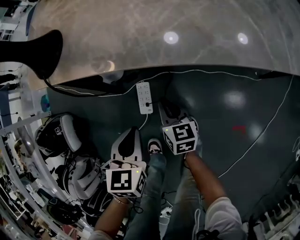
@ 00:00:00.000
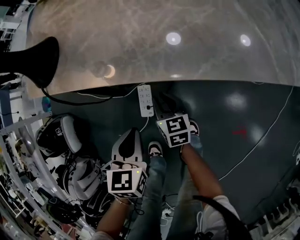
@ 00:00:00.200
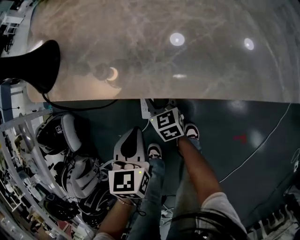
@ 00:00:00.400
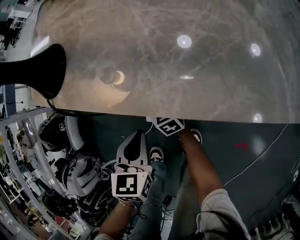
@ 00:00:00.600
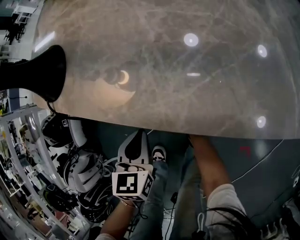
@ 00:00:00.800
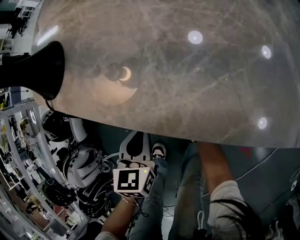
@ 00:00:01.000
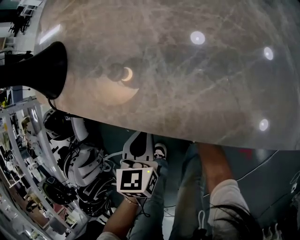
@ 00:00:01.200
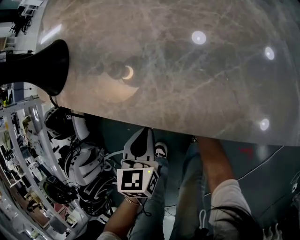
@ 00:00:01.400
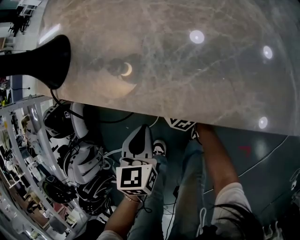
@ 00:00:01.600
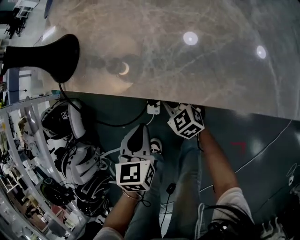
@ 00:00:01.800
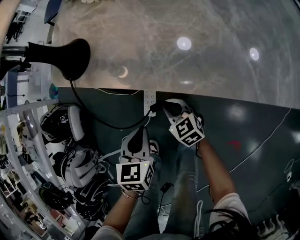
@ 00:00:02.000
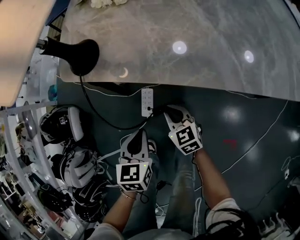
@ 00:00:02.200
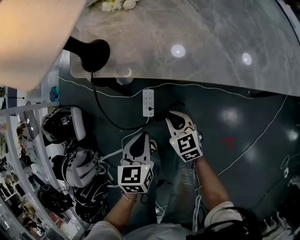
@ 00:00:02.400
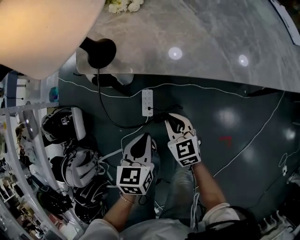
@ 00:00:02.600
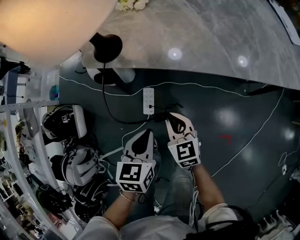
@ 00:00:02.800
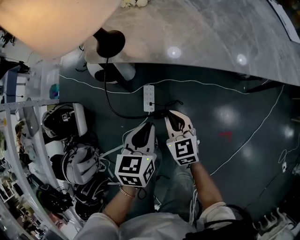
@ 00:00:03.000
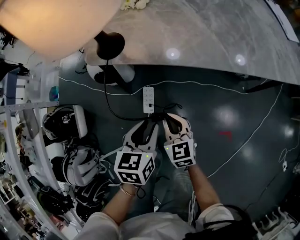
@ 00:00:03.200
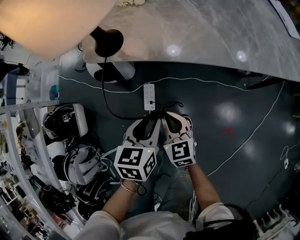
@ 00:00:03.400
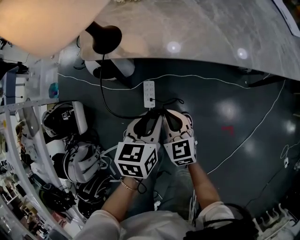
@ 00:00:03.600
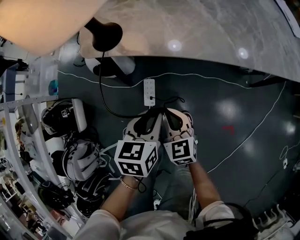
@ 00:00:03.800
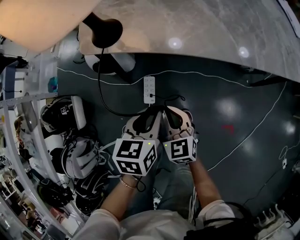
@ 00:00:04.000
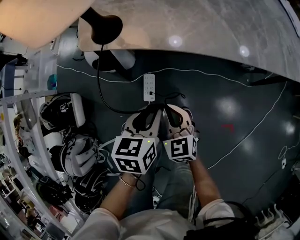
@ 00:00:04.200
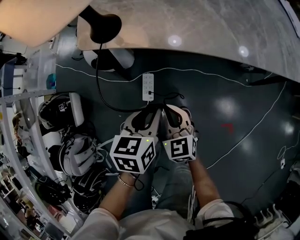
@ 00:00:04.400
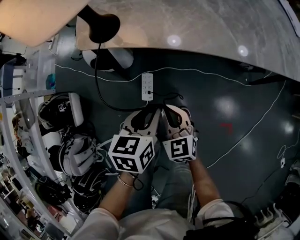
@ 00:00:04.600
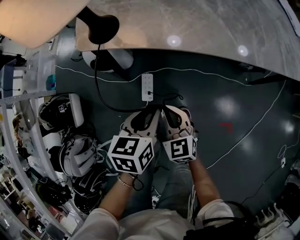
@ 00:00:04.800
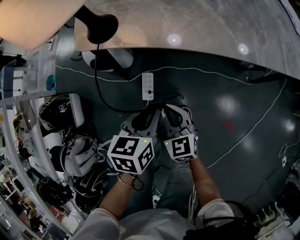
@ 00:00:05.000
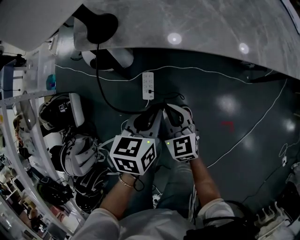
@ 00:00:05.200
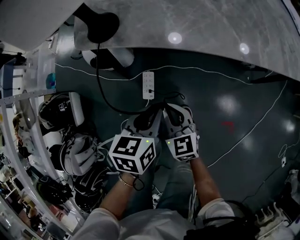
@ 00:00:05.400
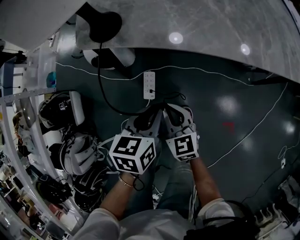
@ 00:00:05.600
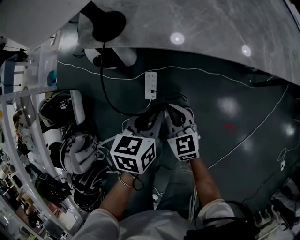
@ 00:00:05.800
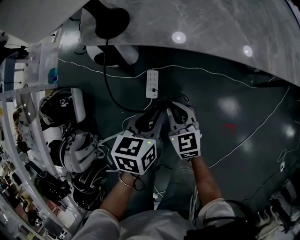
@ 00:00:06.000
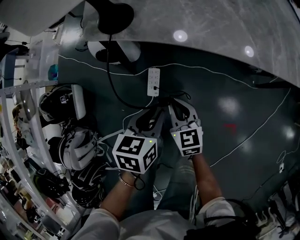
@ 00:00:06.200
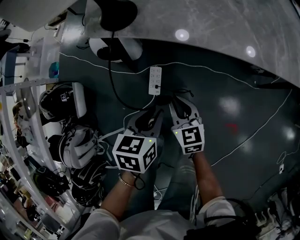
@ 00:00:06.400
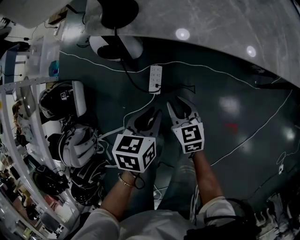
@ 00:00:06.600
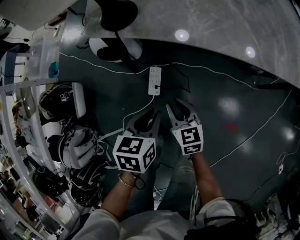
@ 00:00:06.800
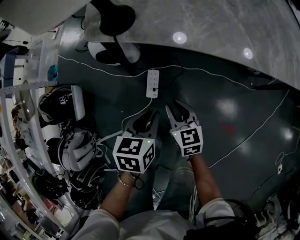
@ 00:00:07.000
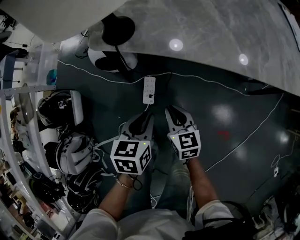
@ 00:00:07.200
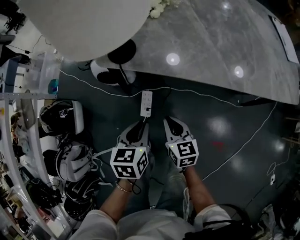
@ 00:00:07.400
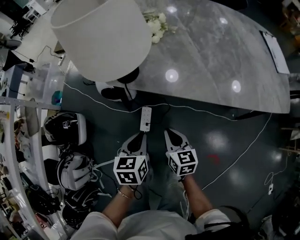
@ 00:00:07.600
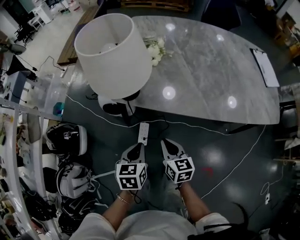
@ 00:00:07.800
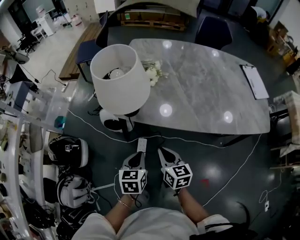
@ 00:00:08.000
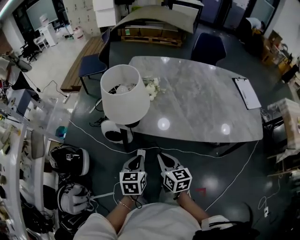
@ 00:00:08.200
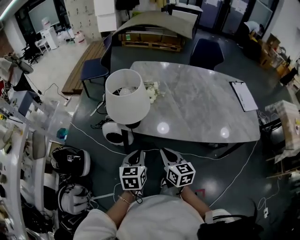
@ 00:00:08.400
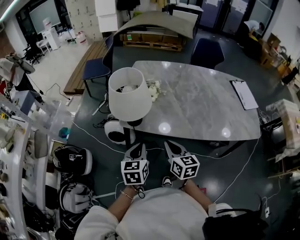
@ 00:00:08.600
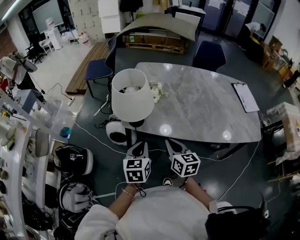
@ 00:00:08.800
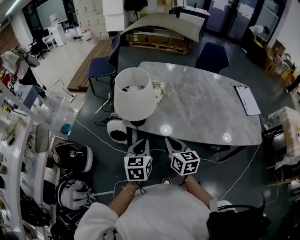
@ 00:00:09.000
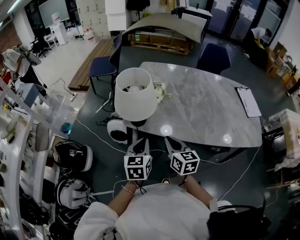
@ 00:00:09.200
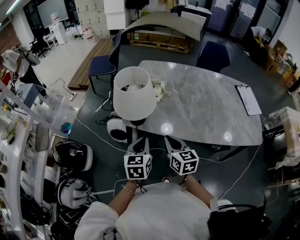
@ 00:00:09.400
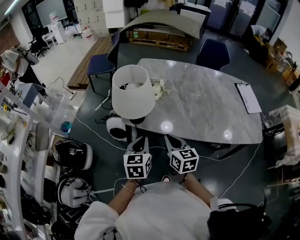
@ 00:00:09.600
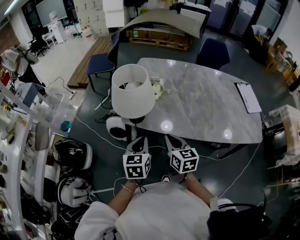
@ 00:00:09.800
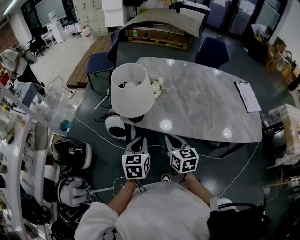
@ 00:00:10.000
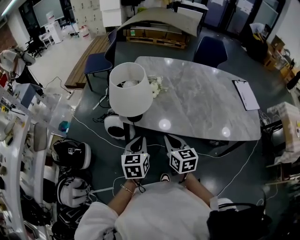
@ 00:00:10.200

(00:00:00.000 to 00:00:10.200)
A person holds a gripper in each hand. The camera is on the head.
00:00:00.000 - 00:00:01.400: The right gripper travels forward by some 10 cm, rolls counterclockwise, seen from behind, by some 40 degrees, and opens, then closes again. Meanwhile the left gripper shifts by roughly 5 cm.
00:00:01.400 - 00:00:03.000: The grippers both shift upward and backward by approximately 25 cm. The right gripper swivels approximately 30 degrees.
00:00:03.000 - 00:00:04.400: The left gripper opens its fingers.
00:00:04.400 - 00:00:05.800: The grippers stay close to where they were, moving slightly.
00:00:05.800 - 00:00:07.200: The grippers move only a little.
00:00:07.200 - 00:00:08.800: The grippers both shift upward by roughly 30 cm. The left gripper rotates roughly 20 degrees.
00:00:08.800 - 00:00:10.200: The grippers move only a little.

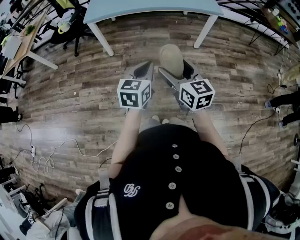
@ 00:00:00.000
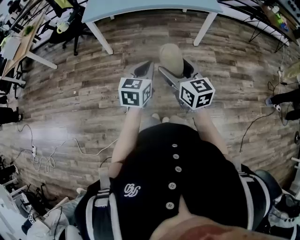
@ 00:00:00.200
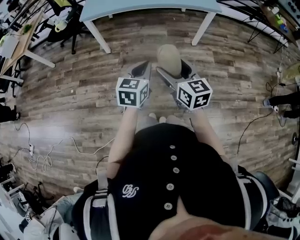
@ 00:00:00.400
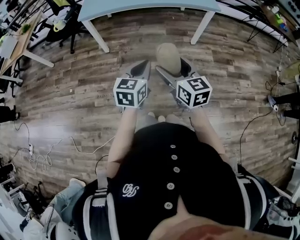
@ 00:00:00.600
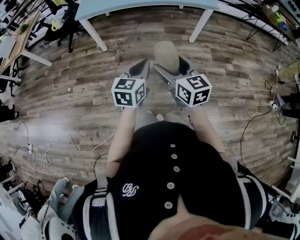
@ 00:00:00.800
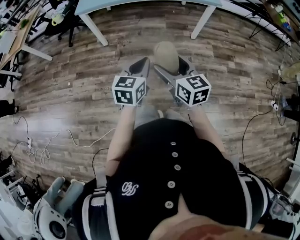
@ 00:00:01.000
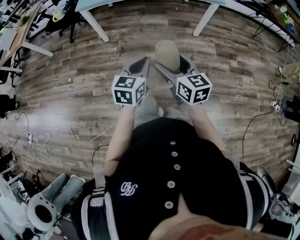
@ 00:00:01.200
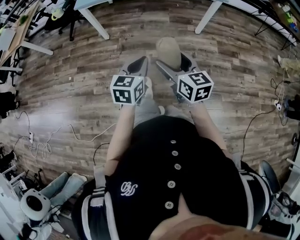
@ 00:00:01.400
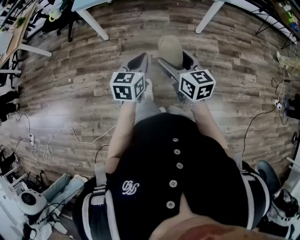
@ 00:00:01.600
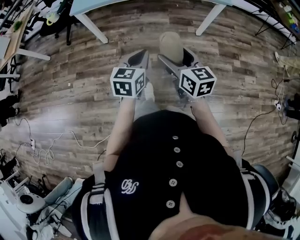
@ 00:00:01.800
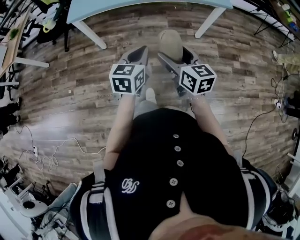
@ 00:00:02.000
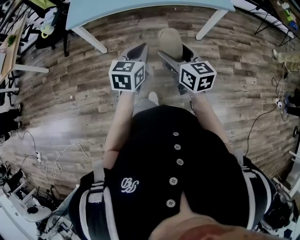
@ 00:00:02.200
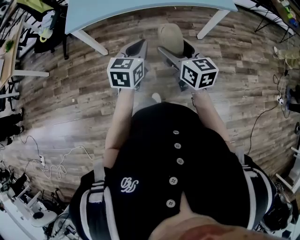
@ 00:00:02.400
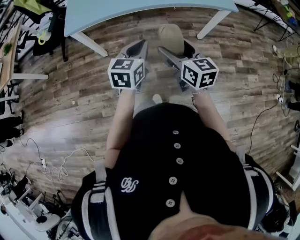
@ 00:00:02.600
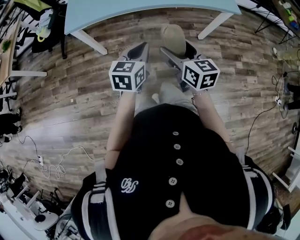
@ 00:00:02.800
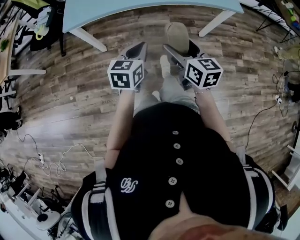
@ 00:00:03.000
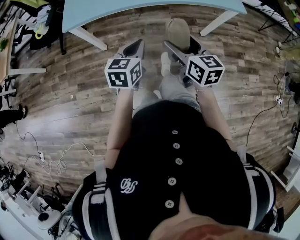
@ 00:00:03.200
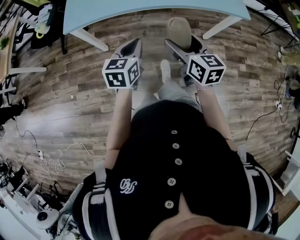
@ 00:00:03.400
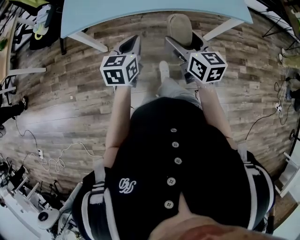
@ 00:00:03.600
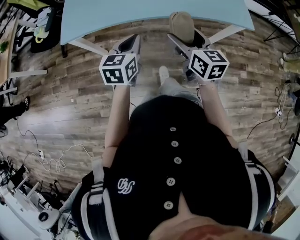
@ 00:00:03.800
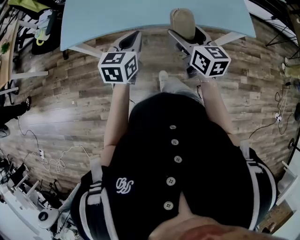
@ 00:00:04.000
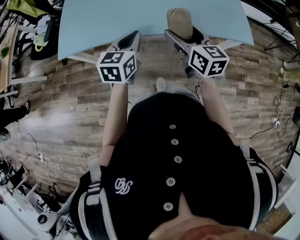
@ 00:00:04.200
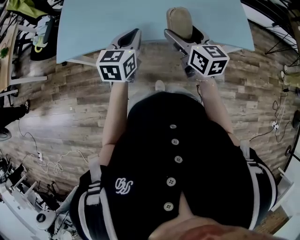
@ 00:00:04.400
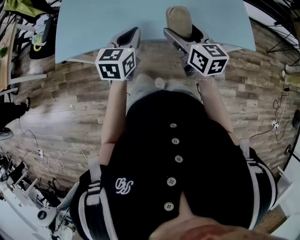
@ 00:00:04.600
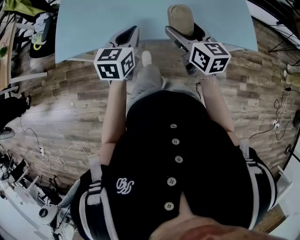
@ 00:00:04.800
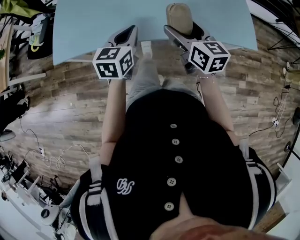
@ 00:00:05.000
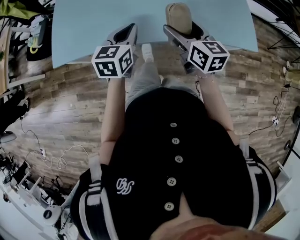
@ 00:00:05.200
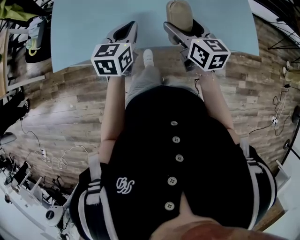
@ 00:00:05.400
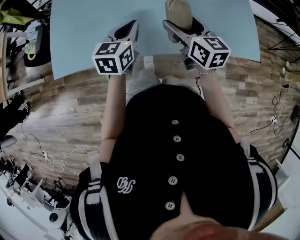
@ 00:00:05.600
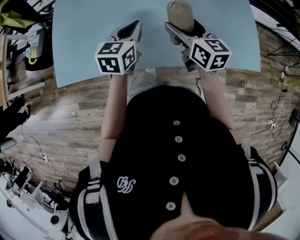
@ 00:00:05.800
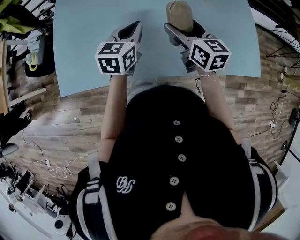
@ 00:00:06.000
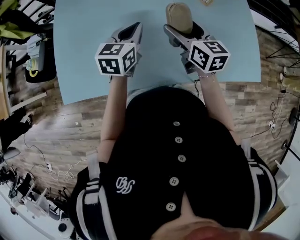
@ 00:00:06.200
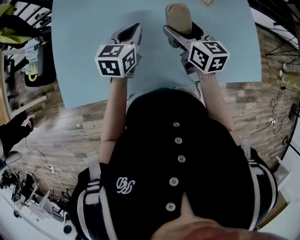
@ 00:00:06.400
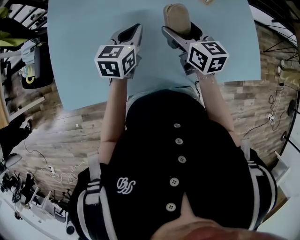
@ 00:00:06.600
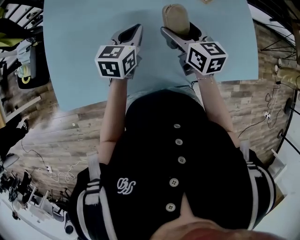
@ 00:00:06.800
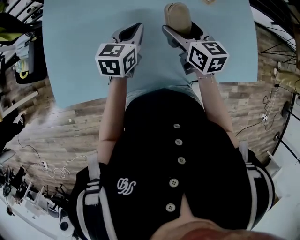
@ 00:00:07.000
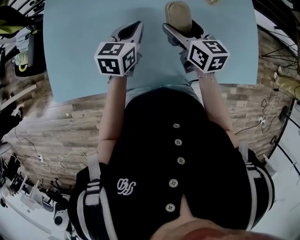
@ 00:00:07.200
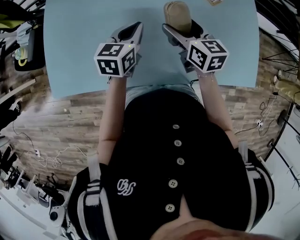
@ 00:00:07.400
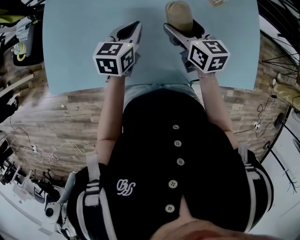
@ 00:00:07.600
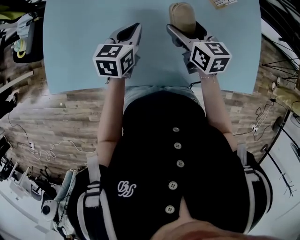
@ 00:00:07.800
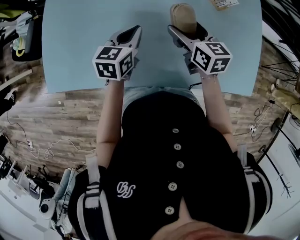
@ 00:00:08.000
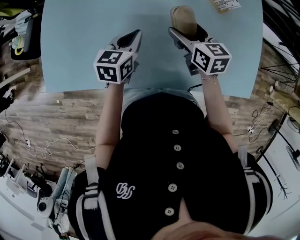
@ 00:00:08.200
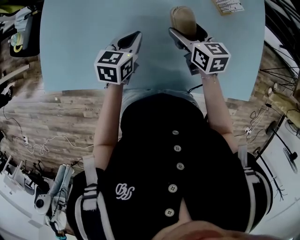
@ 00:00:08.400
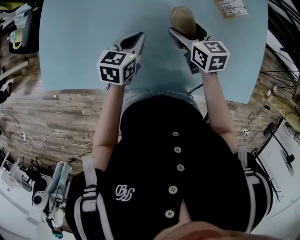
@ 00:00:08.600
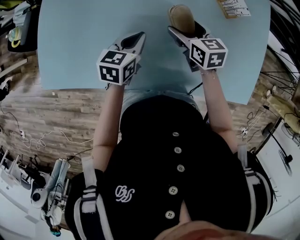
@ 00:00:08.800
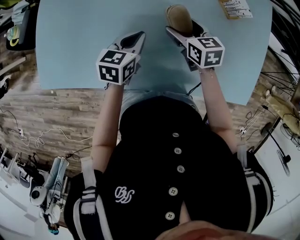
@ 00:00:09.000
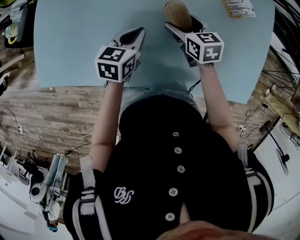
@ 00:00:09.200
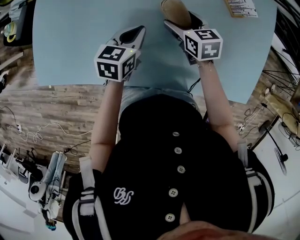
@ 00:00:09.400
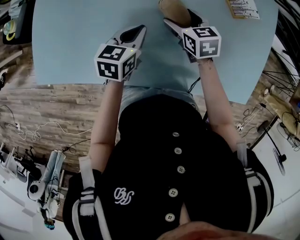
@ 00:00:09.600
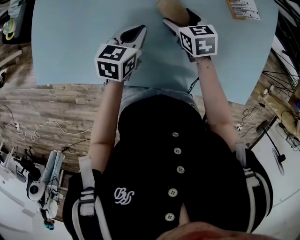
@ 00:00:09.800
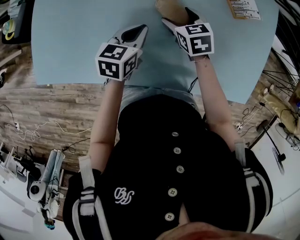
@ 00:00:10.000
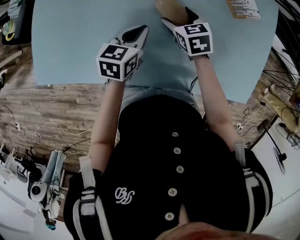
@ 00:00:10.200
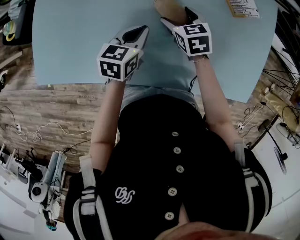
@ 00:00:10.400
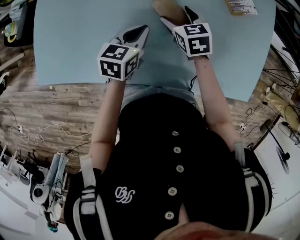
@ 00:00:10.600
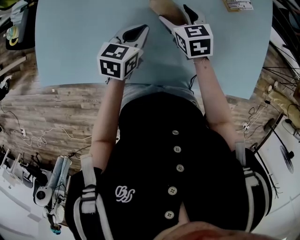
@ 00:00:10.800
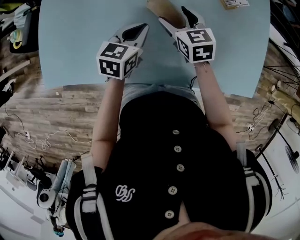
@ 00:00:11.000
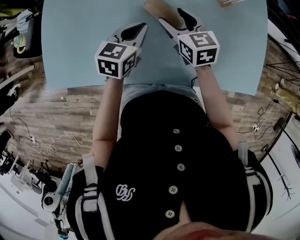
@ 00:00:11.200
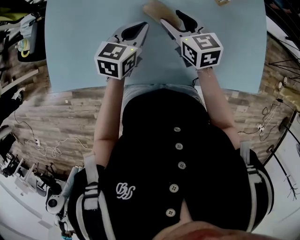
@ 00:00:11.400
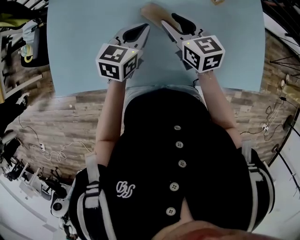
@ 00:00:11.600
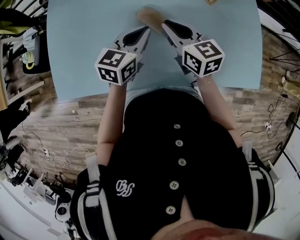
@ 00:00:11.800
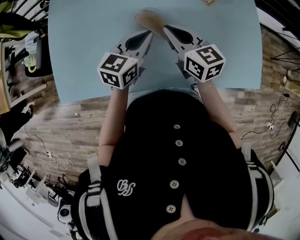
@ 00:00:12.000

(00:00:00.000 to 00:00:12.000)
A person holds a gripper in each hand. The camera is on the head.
00:00:00.000 - 00:00:01.600: The grippers both shift forward and downward by roughly 10 cm.
00:00:01.600 - 00:00:03.000: The two grippers go some 25 cm forward.
00:00:03.000 - 00:00:04.400: The grippers both shift forward by roughly 30 cm.
00:00:04.400 - 00:00:06.000: The grippers both shift forward by approximately 20 cm.
00:00:06.000 - 00:00:07.600: The right gripper heads forward, covering roughly 5 cm. The left gripper goes approximately 5 cm downward.
00:00:07.600 - 00:00:09.000: Both grippers move downward, approximately 10 cm.
00:00:09.000 - 00:00:10.400: The grippers move only a little.
00:00:10.400 - 00:00:12.000: The left gripper heads upward and to the right, covering roughly 15 cm, and swivels some 20 degrees, while the right gripper is displaced upward and backward by about 20 cm, tilts its fingers some 30 degrees upward, and closes up.

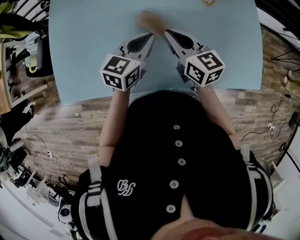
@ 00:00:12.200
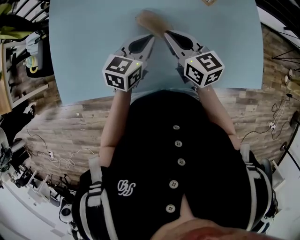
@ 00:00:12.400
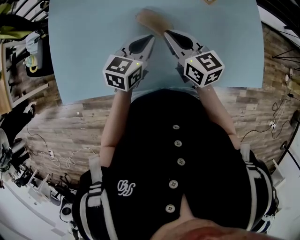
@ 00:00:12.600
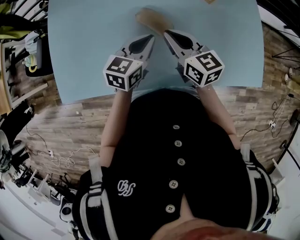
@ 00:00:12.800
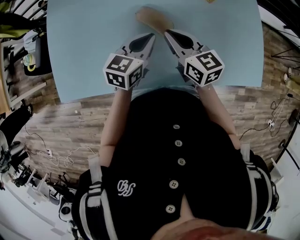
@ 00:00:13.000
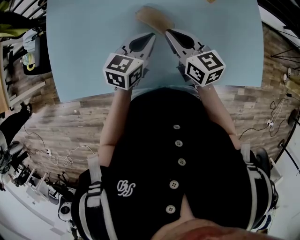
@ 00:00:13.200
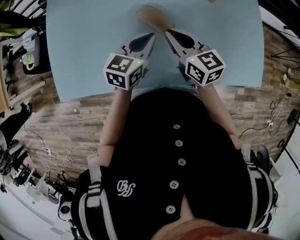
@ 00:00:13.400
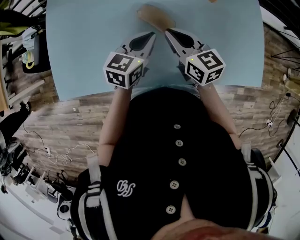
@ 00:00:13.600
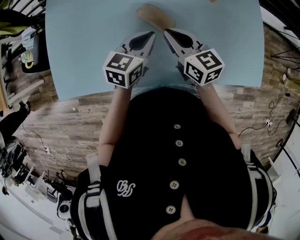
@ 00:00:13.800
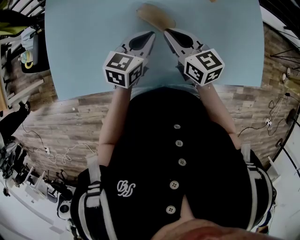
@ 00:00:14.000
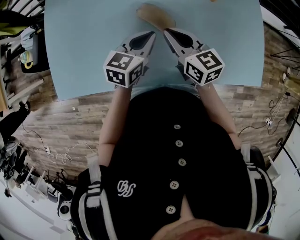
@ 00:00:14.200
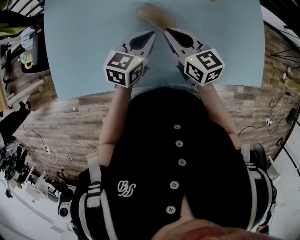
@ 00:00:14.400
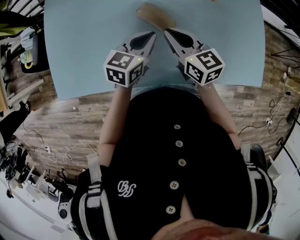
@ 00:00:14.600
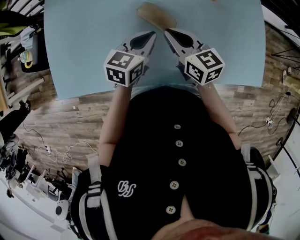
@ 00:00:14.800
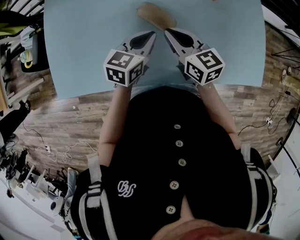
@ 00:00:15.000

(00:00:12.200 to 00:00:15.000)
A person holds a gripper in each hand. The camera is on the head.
00:00:12.200 - 00:00:15.000: The grippers make only small movements.
